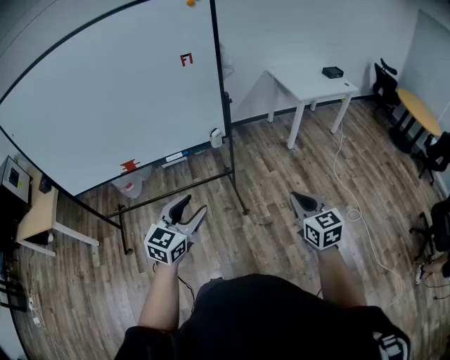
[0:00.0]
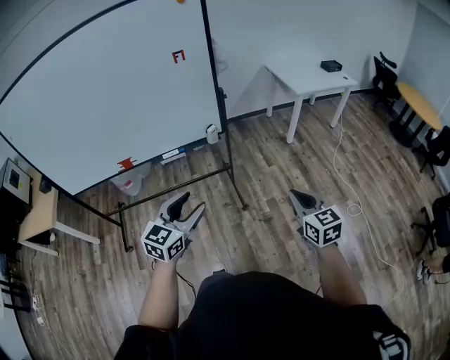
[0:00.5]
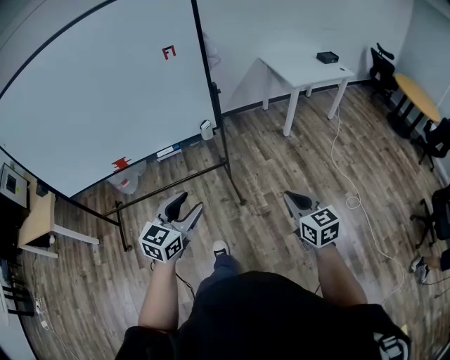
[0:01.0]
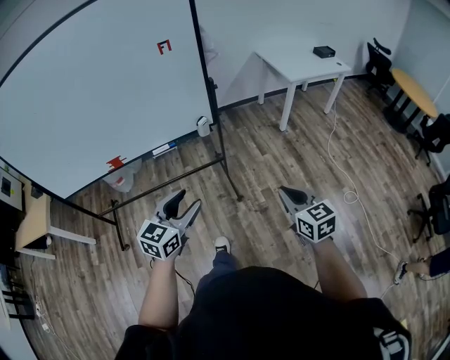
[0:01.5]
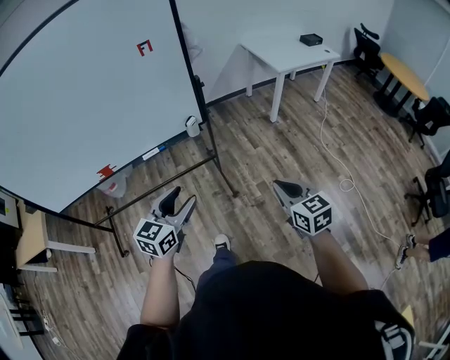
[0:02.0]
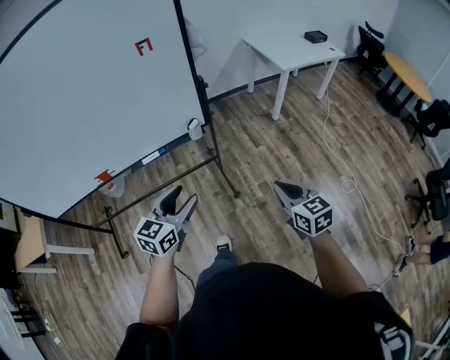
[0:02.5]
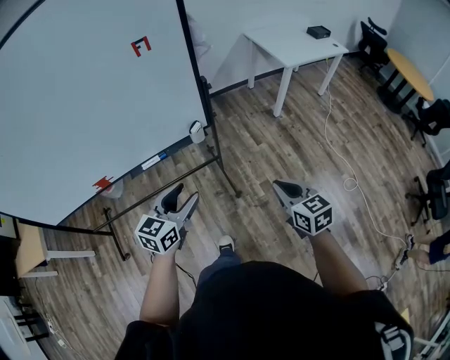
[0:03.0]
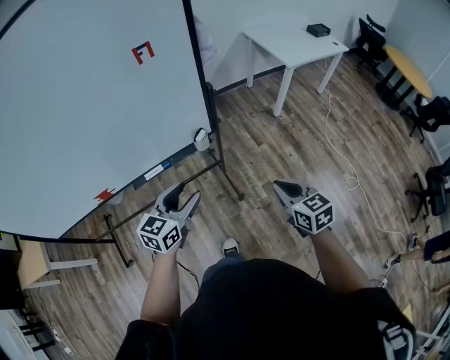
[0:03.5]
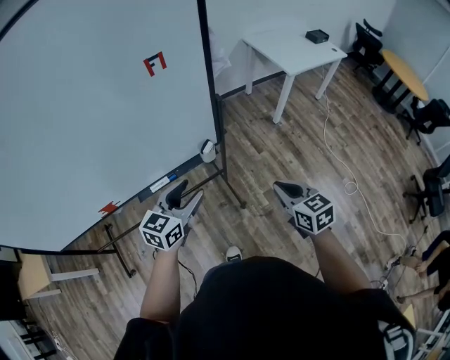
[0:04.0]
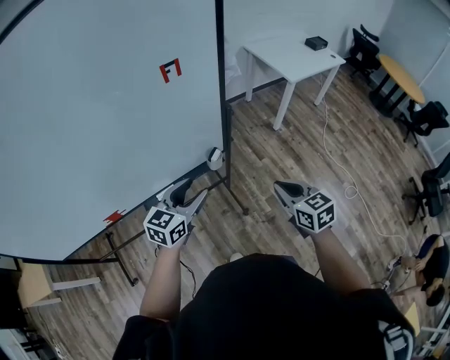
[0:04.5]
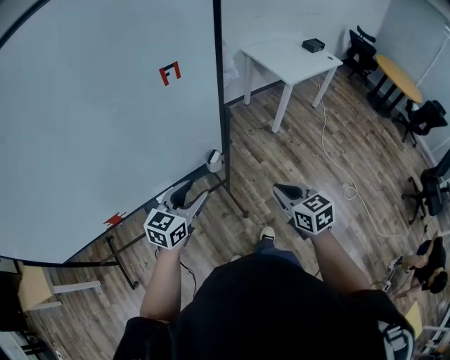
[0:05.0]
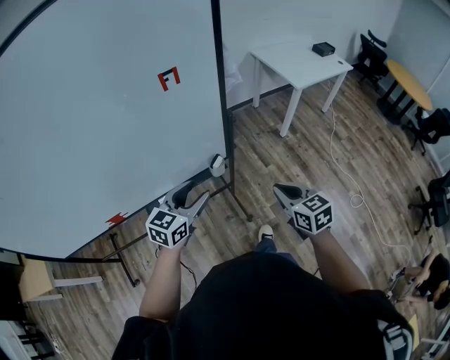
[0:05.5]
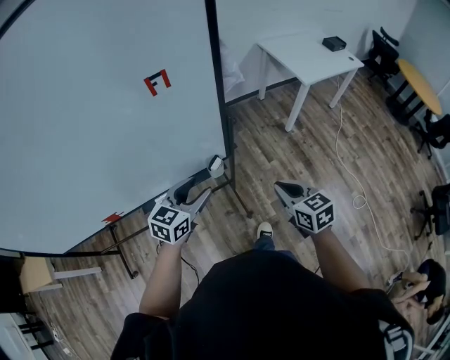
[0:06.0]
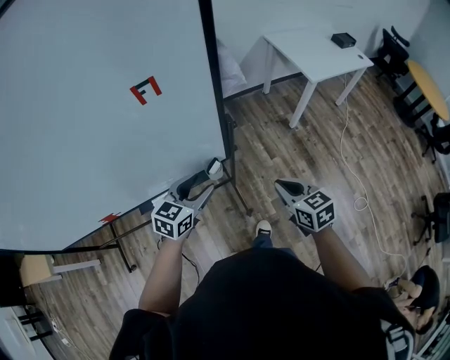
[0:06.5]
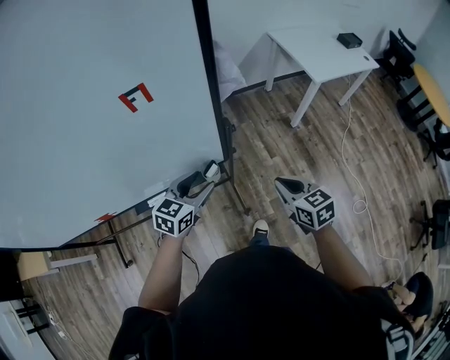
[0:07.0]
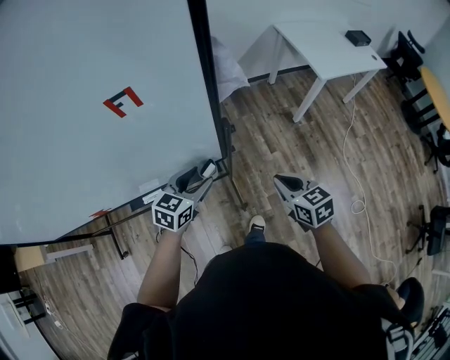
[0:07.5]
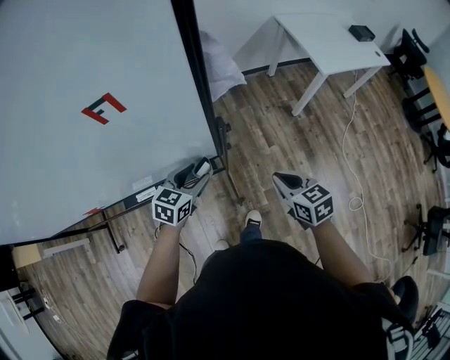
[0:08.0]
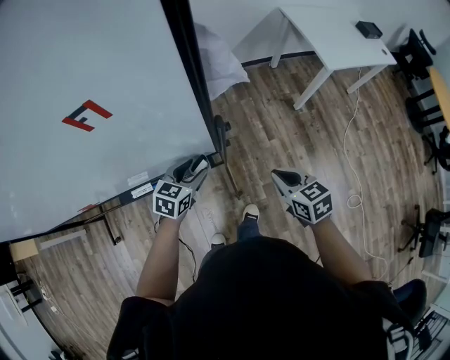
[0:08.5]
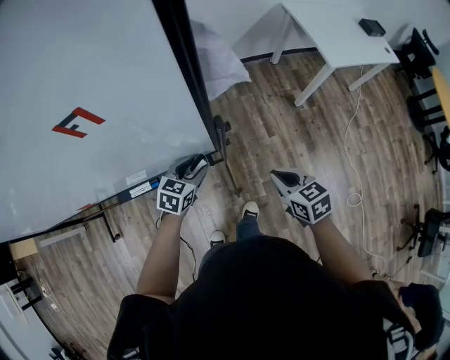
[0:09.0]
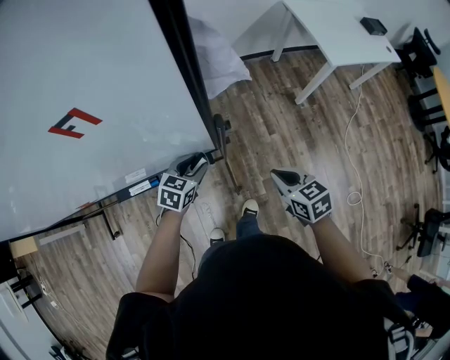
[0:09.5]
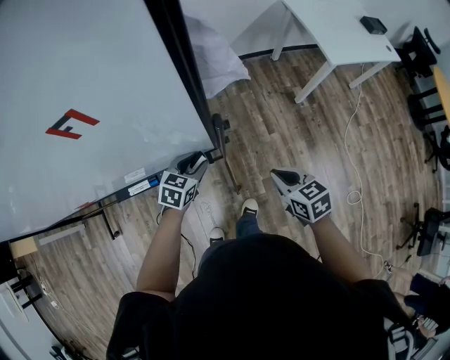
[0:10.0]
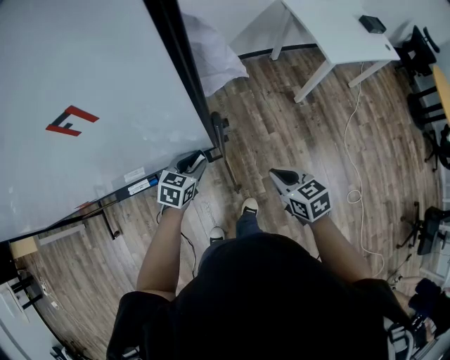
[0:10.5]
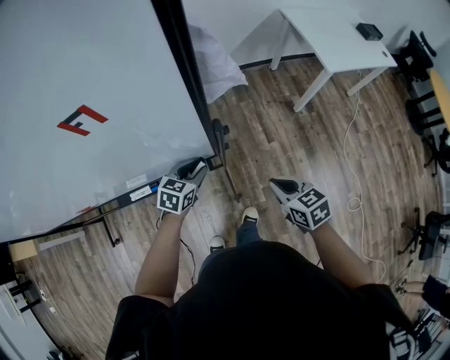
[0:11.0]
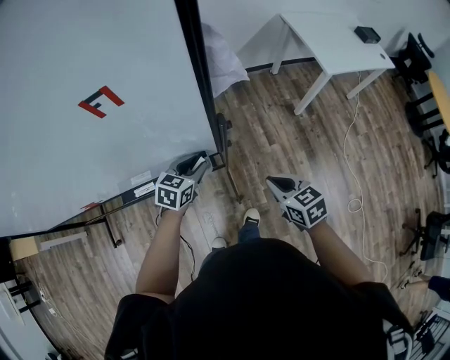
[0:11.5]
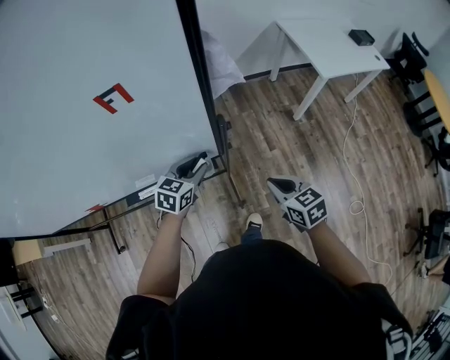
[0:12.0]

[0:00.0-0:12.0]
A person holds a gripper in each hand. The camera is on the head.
0:00.0 to 0:02.0: The right gripper is displaced forward by some 5 cm; the left gripper moves forward, about 10 cm.
0:02.0 to 0:04.0: Both grippers travel together forward and to the left, roughly 25 cm.
0:04.0 to 0:06.0: Both grippers move forward, some 10 cm.
0:06.0 to 0:08.0: Both grippers travel together forward and downward, some 15 cm.
0:08.0 to 0:10.0: The left gripper moves downward, roughly 10 cm.
0:10.0 to 0:12.0: The left gripper goes approximately 10 cm upward. The right gripper ends up roughly 5 cm from where it was.

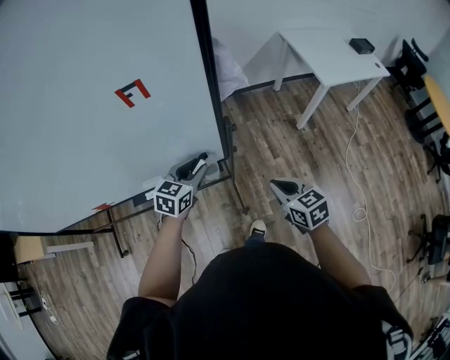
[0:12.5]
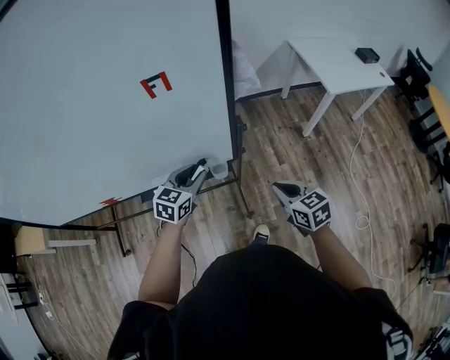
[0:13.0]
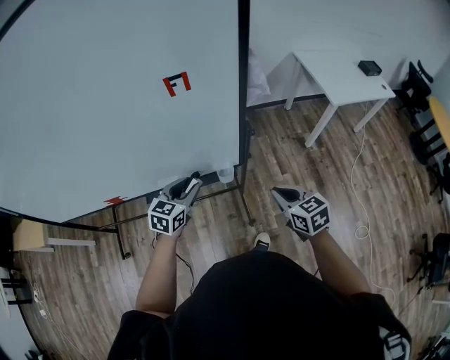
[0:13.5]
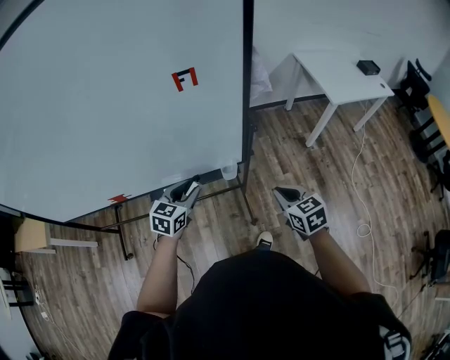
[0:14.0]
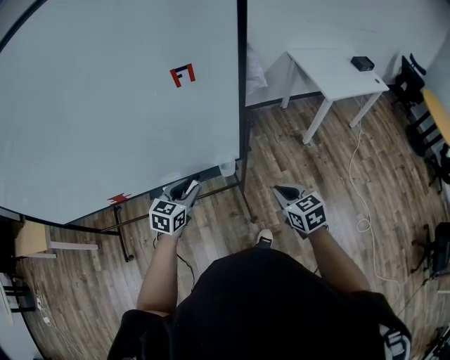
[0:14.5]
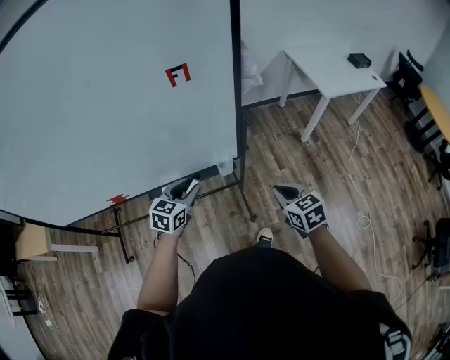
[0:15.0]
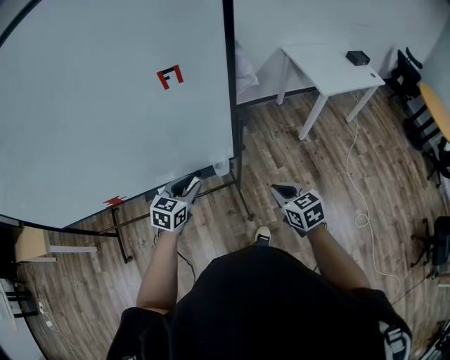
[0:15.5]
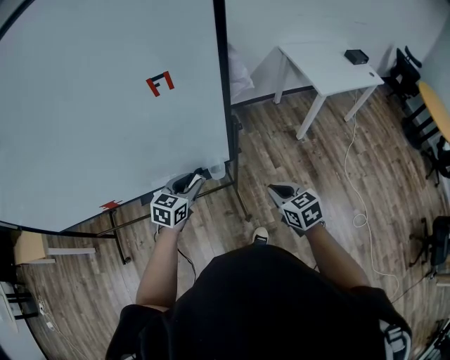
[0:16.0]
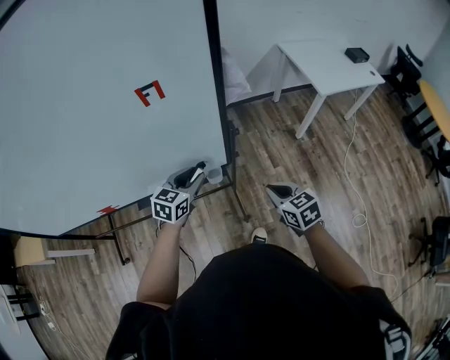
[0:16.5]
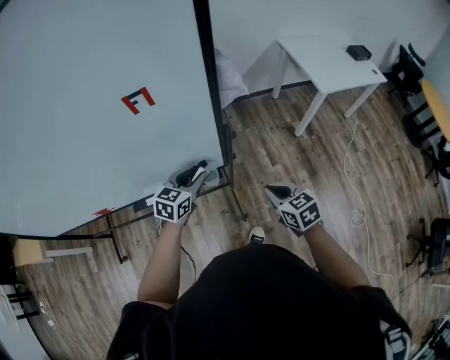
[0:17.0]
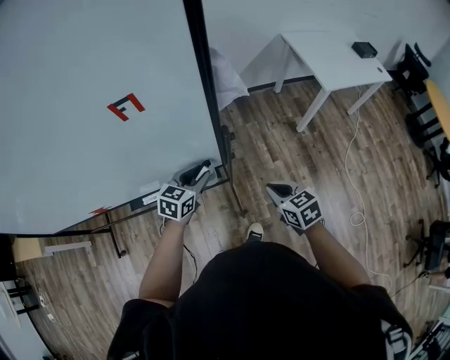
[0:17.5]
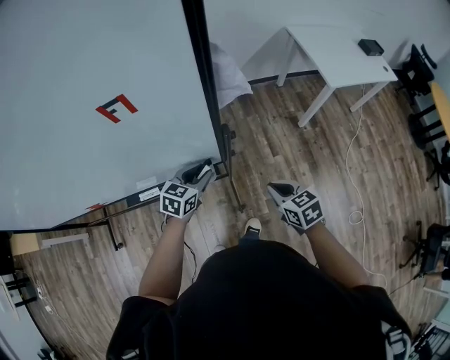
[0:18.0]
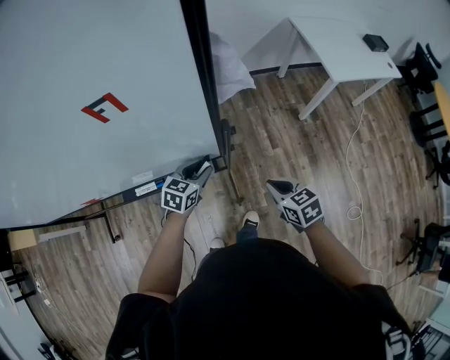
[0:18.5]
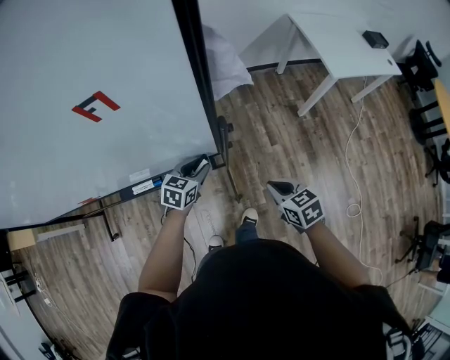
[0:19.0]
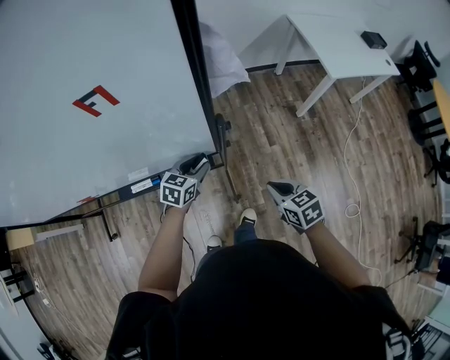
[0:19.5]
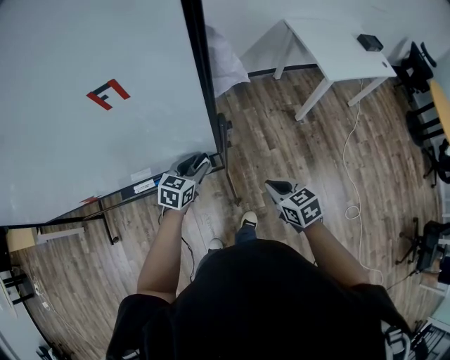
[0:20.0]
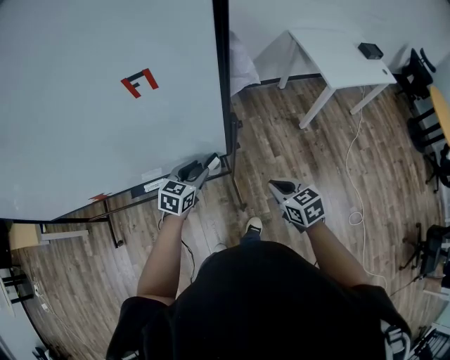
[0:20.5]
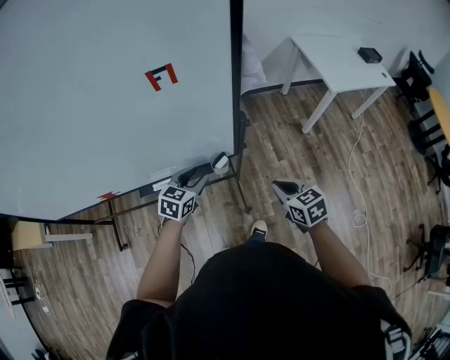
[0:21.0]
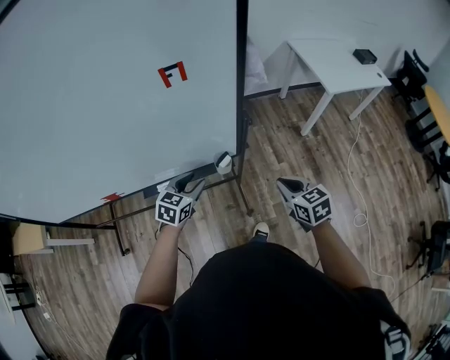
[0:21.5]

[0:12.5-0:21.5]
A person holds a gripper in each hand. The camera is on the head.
0:12.5 to 0:14.5: The right gripper heads backward and to the left, covering some 10 cm. The left gripper heads backward and to the left, covering about 15 cm.
0:14.5 to 0:17.0: The left gripper is displaced forward and to the right by approximately 15 cm; the right gripper is displaced forward by roughly 5 cm.
0:17.0 to 0:19.5: The right gripper shifts approximately 5 cm downward. Meanwhile the left gripper heads downward, covering roughly 10 cm.
0:19.5 to 0:21.5: The left gripper travels to the left, backward and upward by roughly 15 cm, while the right gripper heads upward, covering roughly 10 cm.

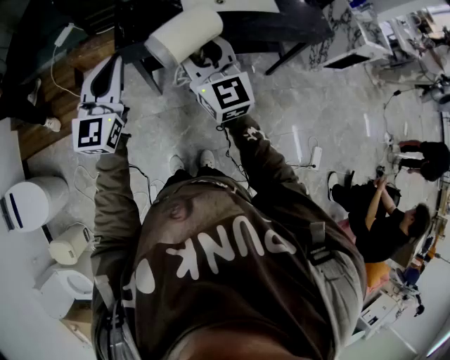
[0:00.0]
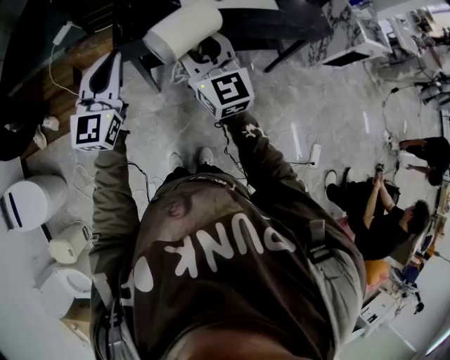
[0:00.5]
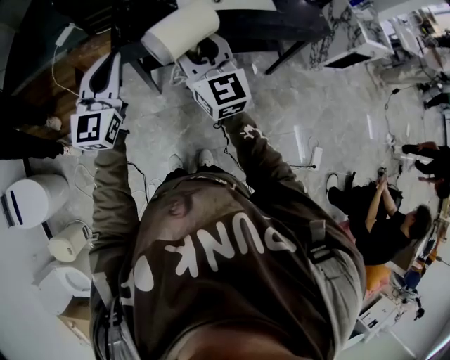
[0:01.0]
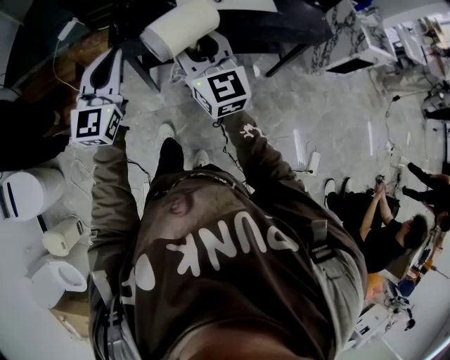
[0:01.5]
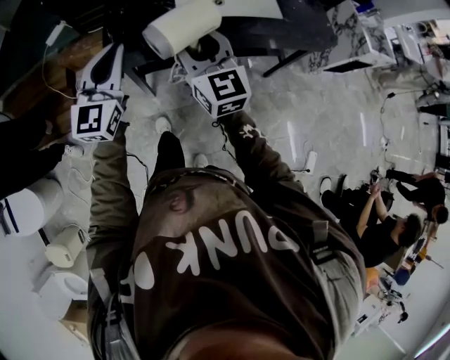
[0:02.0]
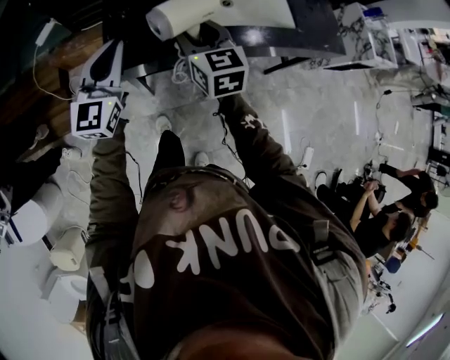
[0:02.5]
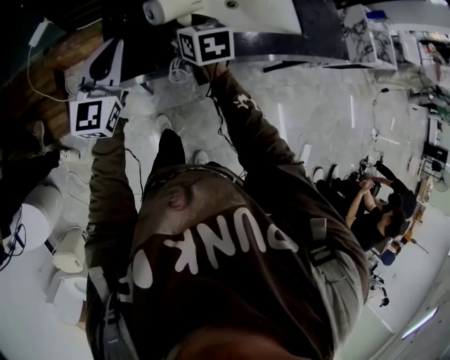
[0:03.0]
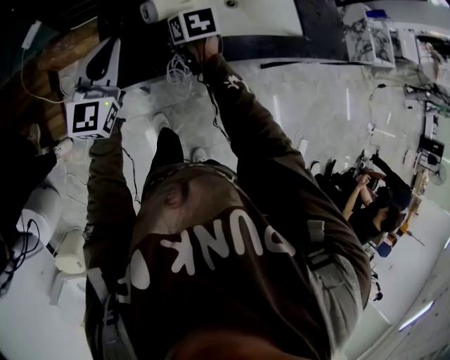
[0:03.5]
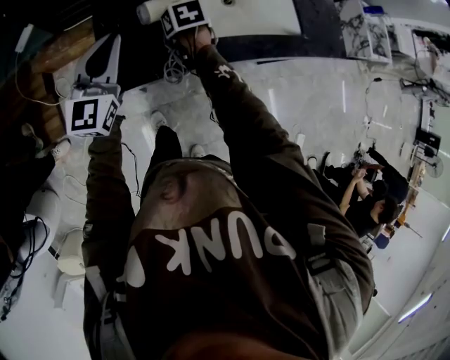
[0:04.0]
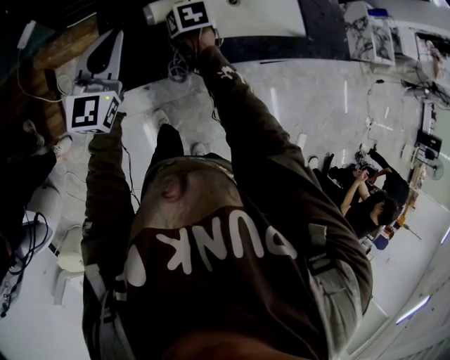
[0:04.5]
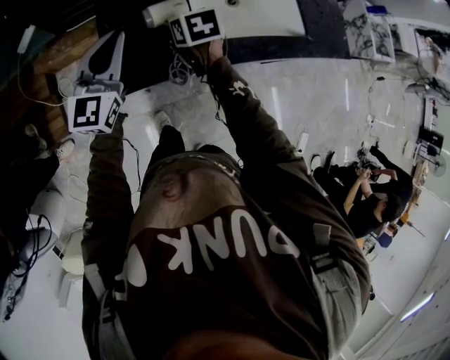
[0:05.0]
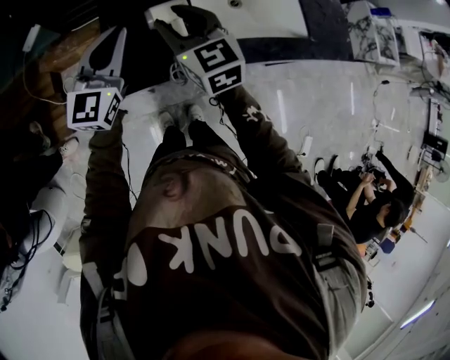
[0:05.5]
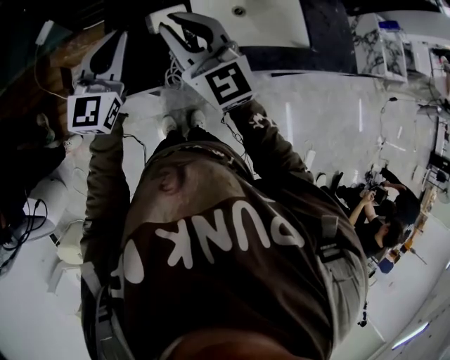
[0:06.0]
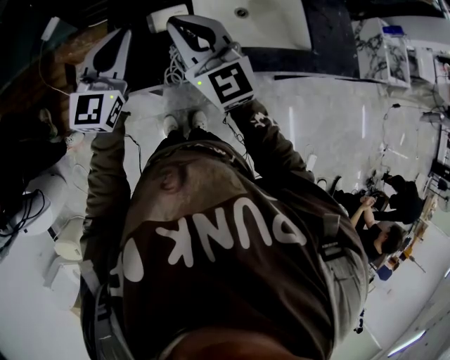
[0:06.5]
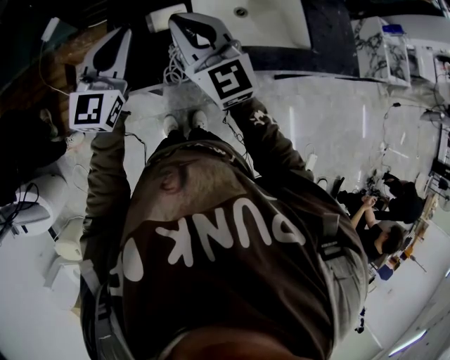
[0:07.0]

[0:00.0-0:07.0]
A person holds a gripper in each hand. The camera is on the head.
0:00.0 to 0:02.0: Both grippers move forward, some 10 cm.
0:02.0 to 0:03.5: The right gripper goes about 35 cm forward and downward, and points its fingers about 50 degrees further downward. The left gripper moves forward, some 20 cm.
0:03.5 to 0:05.0: The grippers move only a little.
0:05.0 to 0:07.0: The left gripper is displaced upward by about 5 cm; the right gripper heads upward, covering about 20 cm, angles its fingers upward, by approximately 50 degrees, and closes.
